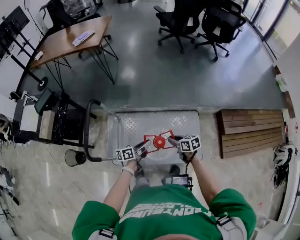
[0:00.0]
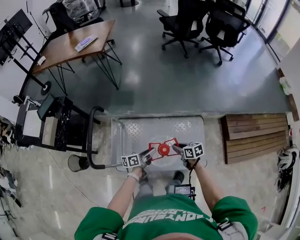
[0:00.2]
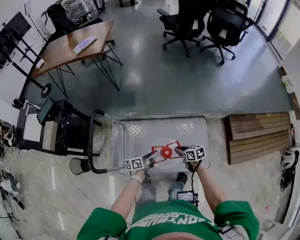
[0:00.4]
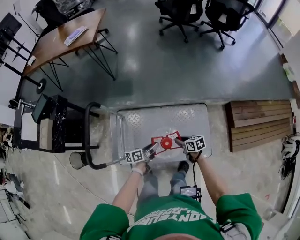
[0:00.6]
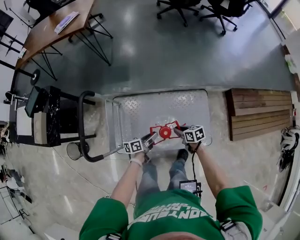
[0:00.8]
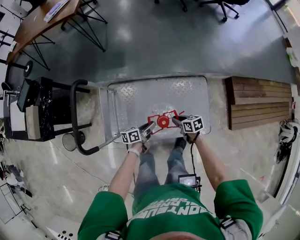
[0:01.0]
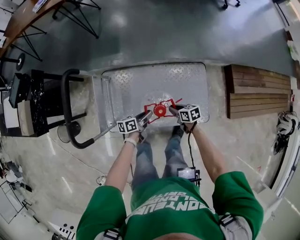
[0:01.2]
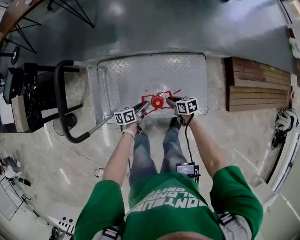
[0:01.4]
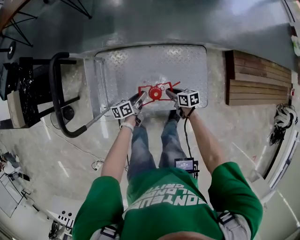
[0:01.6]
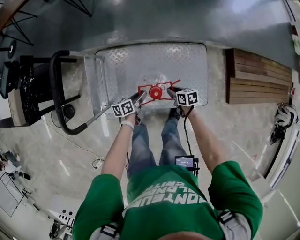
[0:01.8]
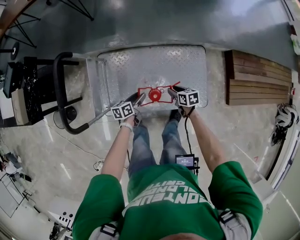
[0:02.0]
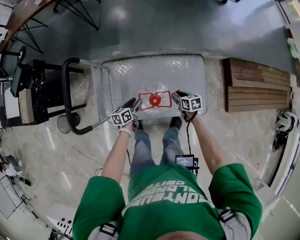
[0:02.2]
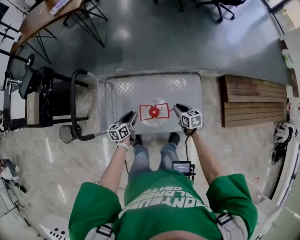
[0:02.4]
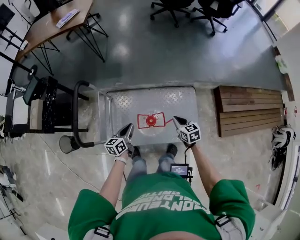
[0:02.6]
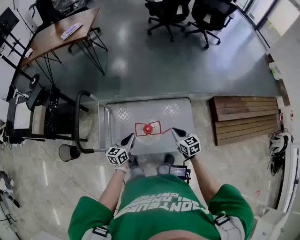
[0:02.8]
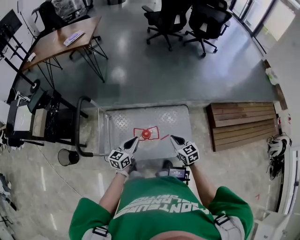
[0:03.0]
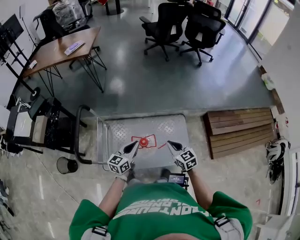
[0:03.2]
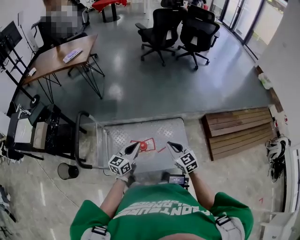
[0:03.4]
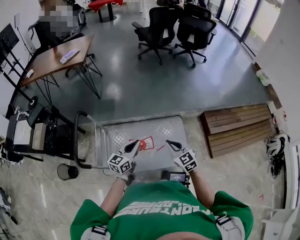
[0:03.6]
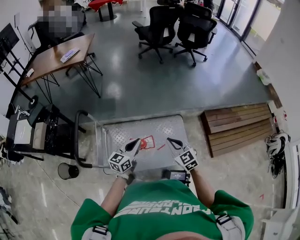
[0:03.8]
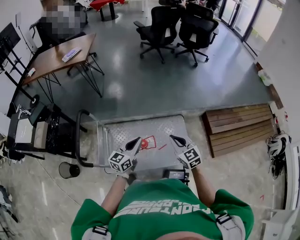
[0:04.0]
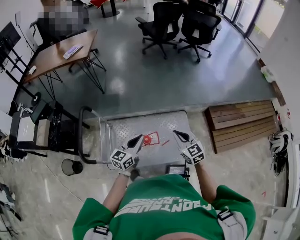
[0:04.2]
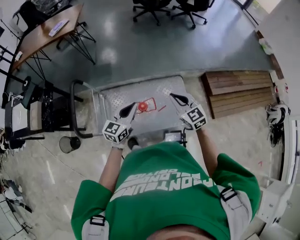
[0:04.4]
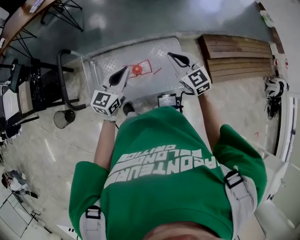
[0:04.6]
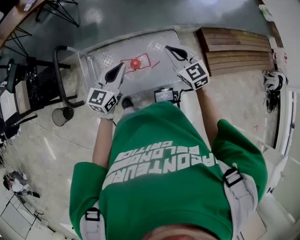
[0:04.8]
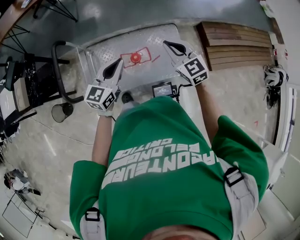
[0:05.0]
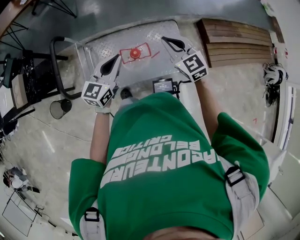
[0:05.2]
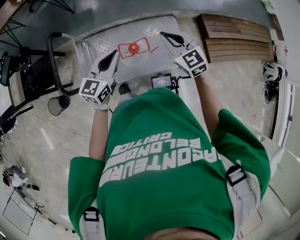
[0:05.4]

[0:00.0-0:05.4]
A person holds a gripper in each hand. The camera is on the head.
0.0 to 1.4 s: The two grippers go roughly 20 cm downward.
1.4 to 2.8 s: The two grippers go approximately 25 cm upward. The left gripper rotates approximately 40 degrees, and opens, then closes again, while the right gripper swivels about 40 degrees, and opens, then closes once more.
2.8 to 4.0 s: The right gripper shifts roughly 15 cm upward, and turns by about 20 degrees; the left gripper travels upward and to the right by roughly 15 cm, and swivels roughly 20 degrees.
4.0 to 5.4 s: The two grippers go about 5 cm to the left.

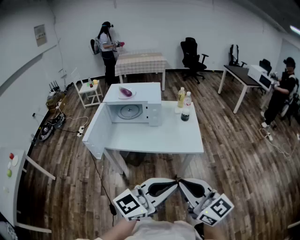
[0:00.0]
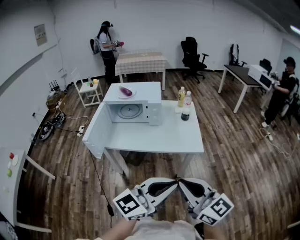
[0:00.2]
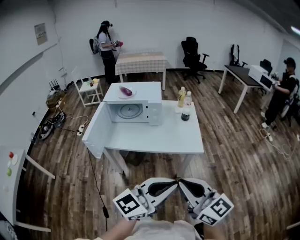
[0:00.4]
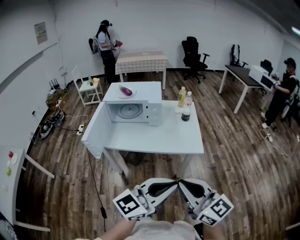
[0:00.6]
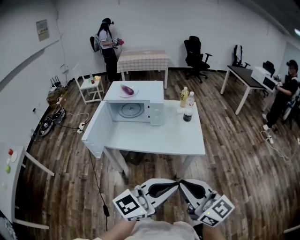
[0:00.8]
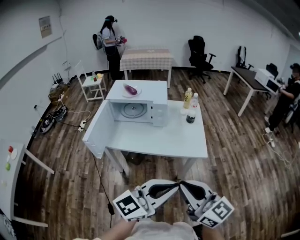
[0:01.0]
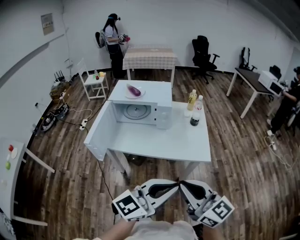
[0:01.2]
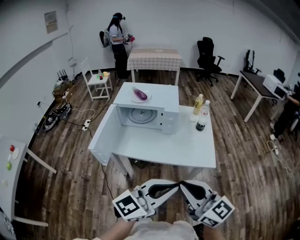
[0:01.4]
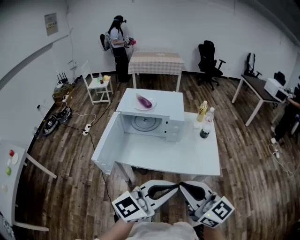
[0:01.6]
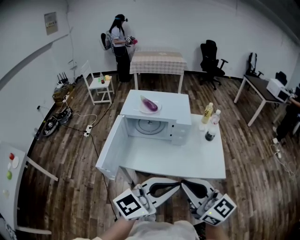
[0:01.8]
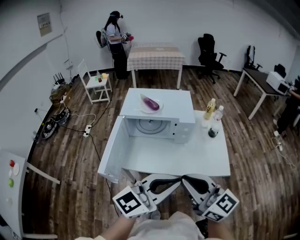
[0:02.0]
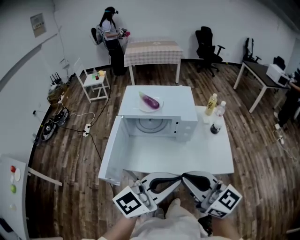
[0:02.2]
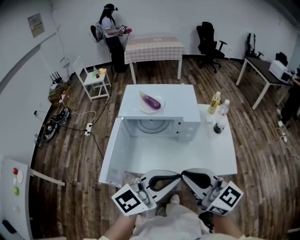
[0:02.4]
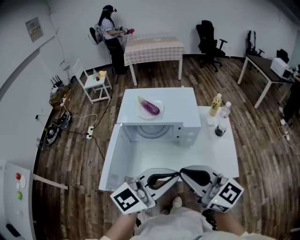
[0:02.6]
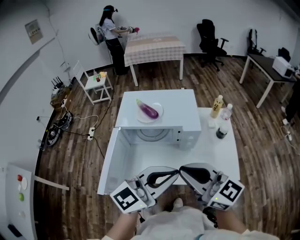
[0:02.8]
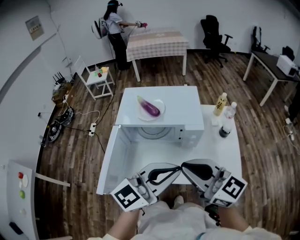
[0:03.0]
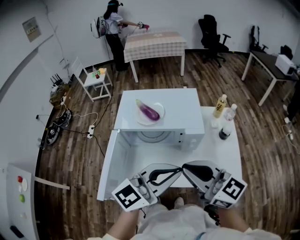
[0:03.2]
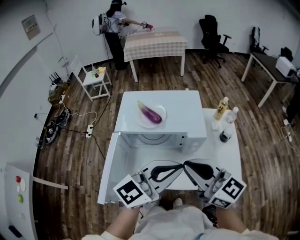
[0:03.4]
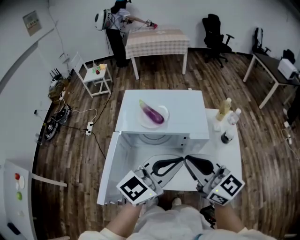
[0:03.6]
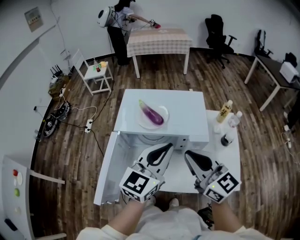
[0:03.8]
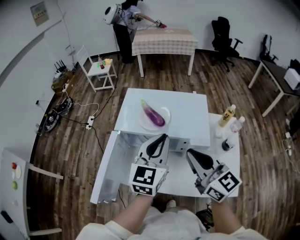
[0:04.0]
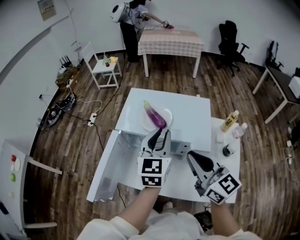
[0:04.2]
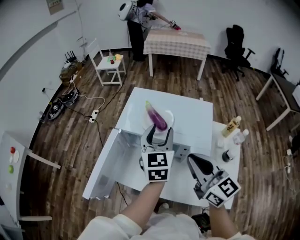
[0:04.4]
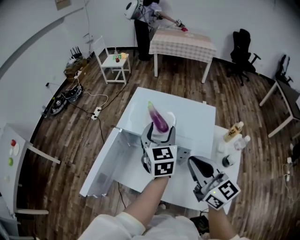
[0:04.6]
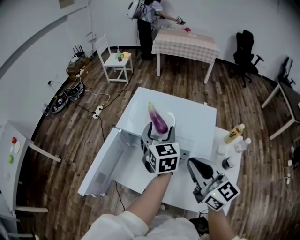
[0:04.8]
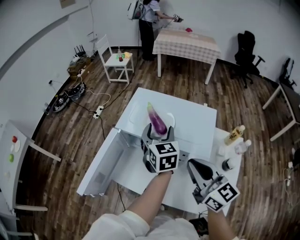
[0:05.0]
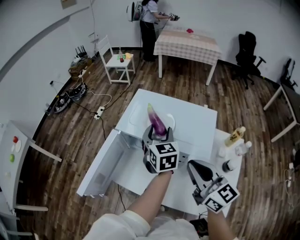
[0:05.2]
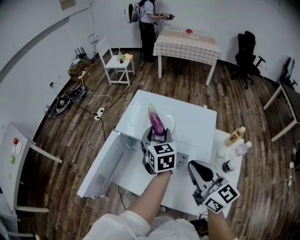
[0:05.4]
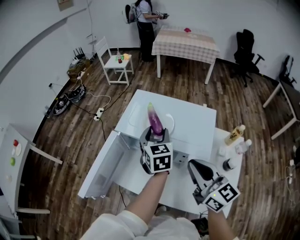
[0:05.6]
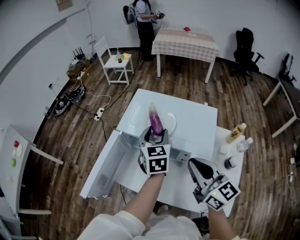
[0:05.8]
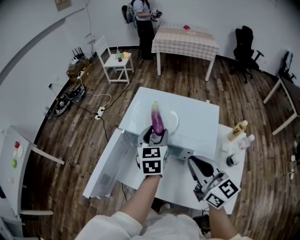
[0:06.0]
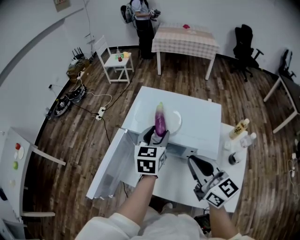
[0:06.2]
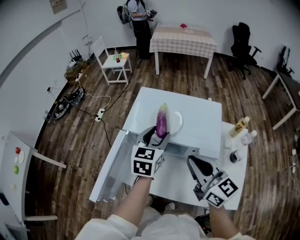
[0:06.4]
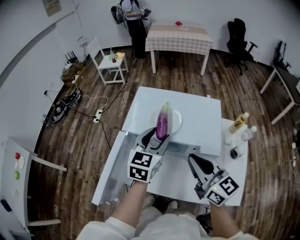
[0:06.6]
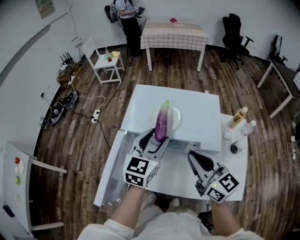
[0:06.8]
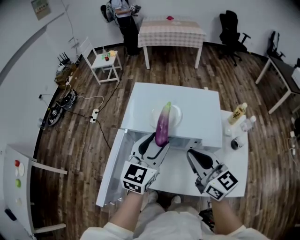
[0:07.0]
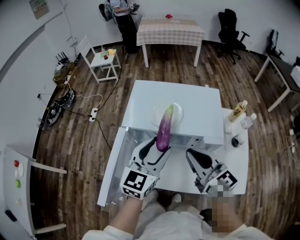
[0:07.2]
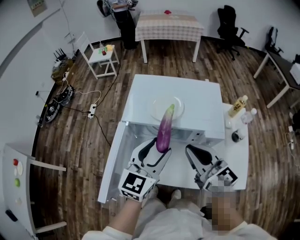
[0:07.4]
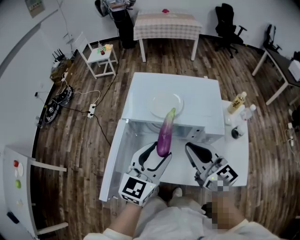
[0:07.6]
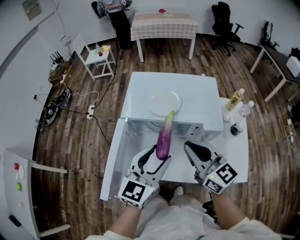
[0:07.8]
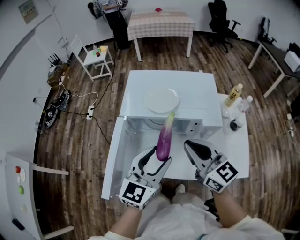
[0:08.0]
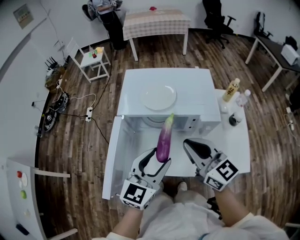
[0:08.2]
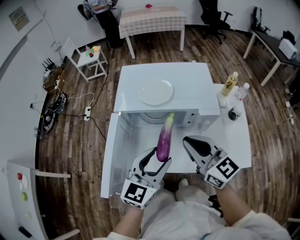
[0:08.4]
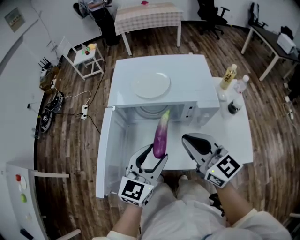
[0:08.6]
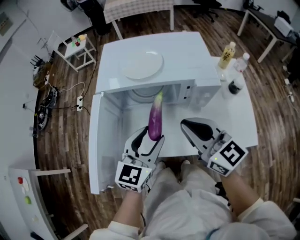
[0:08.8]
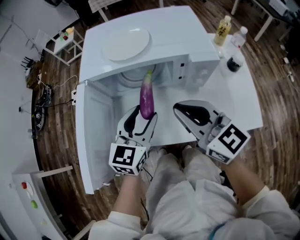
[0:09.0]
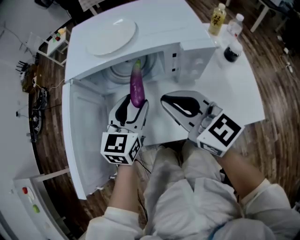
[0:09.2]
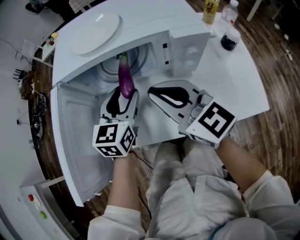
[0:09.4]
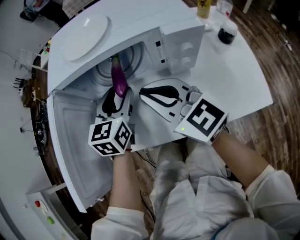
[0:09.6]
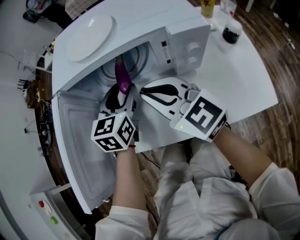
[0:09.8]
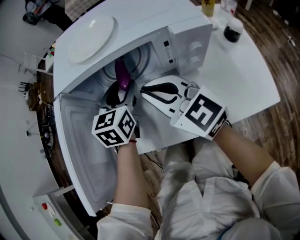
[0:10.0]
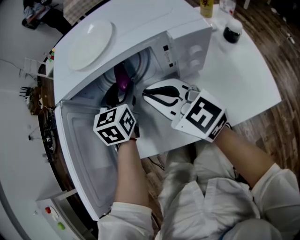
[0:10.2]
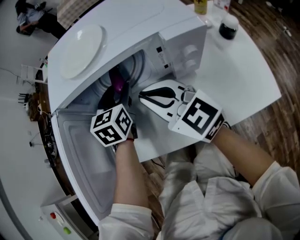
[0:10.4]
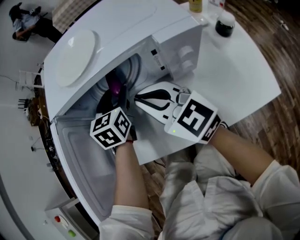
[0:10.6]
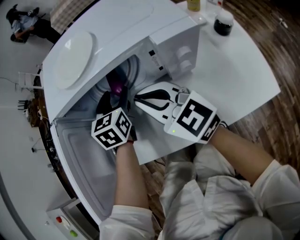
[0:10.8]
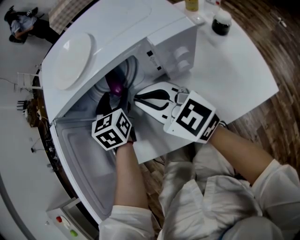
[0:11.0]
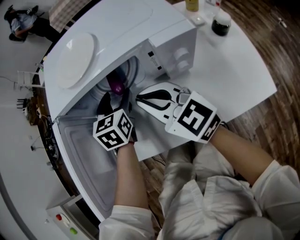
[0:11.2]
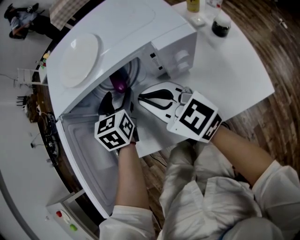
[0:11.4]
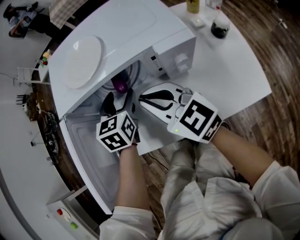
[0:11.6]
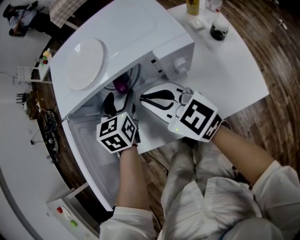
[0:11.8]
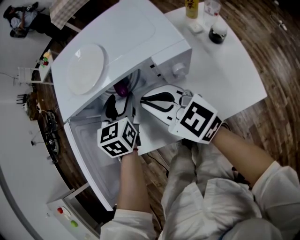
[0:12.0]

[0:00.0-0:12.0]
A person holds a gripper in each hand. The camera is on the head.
0.0 to 1.6 s: Both grippers travel together forward and to the left, about 15 cm.
1.6 to 3.0 s: Both grippers move forward, roughly 20 cm.
3.0 to 4.4 s: The right gripper shifts by roughly 15 cm. The left gripper shifts by approximately 30 cm, changes its angle by roughly 60 degrees, and opens its fingers.
4.4 to 6.0 s: The left gripper changes place by about 5 cm.
6.0 to 7.6 s: The left gripper travels backward by roughly 15 cm, and changes its angle by about 30 degrees. The right gripper is displaced to the left by about 5 cm.
7.6 to 9.0 s: The right gripper is displaced downward by roughly 10 cm; the left gripper is displaced downward by approximately 15 cm.
9.0 to 10.4 s: The right gripper is displaced downward and forward by roughly 10 cm. Meanwhile the left gripper travels forward and downward by some 15 cm.
10.4 to 12.0 s: Both grippers move upward, roughly 5 cm.

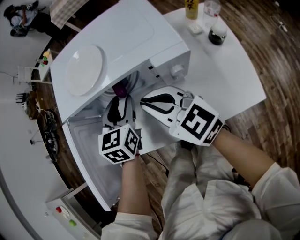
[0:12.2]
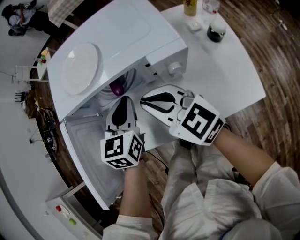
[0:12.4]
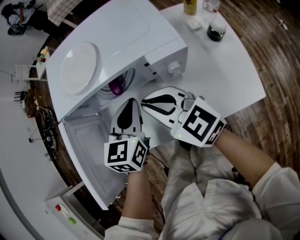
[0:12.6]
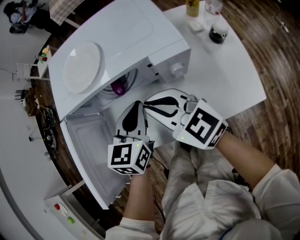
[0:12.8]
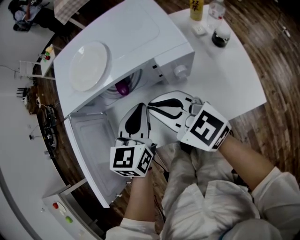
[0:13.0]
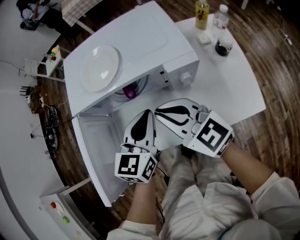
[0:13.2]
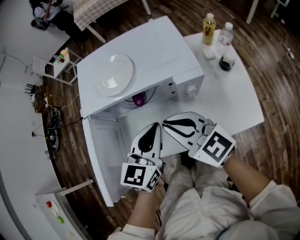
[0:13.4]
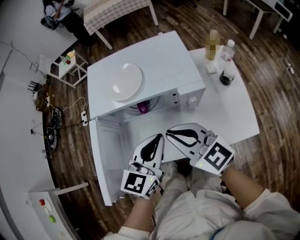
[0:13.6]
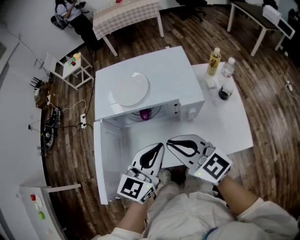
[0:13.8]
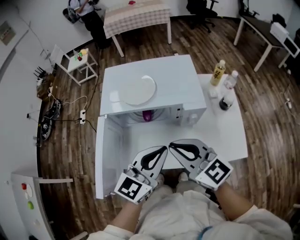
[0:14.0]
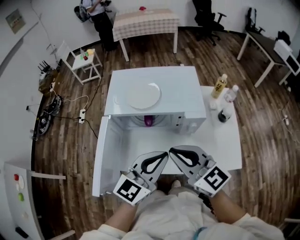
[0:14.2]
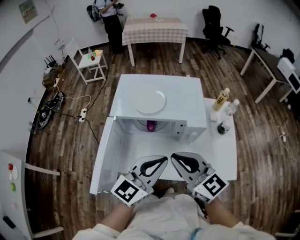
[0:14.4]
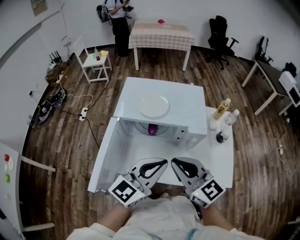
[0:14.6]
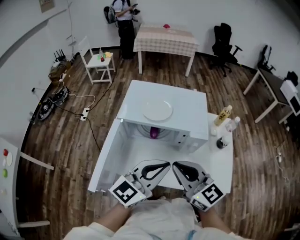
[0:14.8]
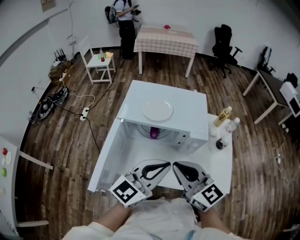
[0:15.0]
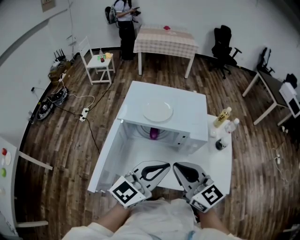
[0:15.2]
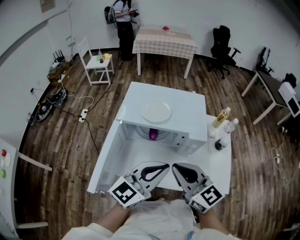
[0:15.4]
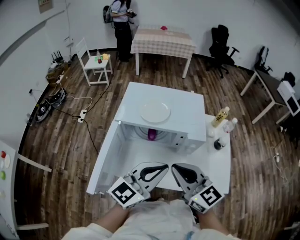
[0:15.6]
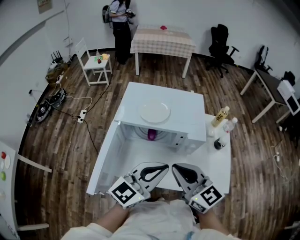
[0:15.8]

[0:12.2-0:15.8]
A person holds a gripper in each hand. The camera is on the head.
12.2 to 14.0 s: The left gripper shifts roughly 20 cm backward and upward, rotates about 30 degrees, and closes up. The right gripper is displaced upward and backward by about 15 cm.
14.0 to 15.8 s: The grippers move only a little.

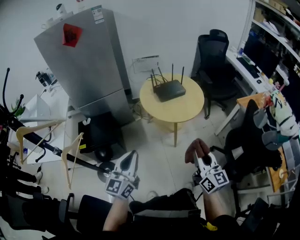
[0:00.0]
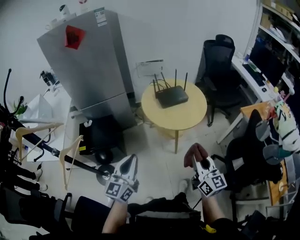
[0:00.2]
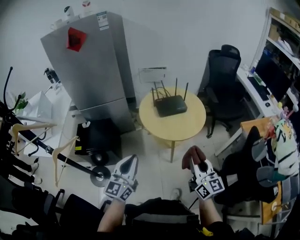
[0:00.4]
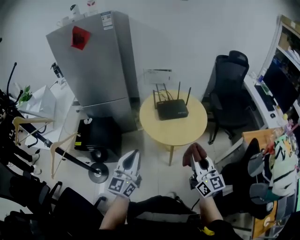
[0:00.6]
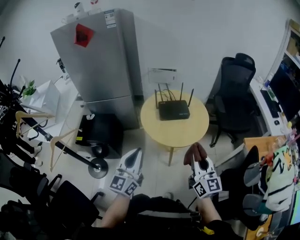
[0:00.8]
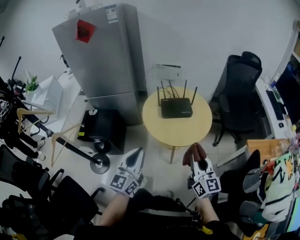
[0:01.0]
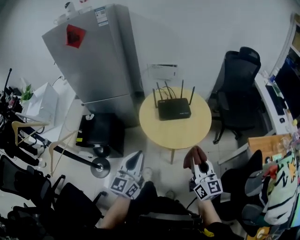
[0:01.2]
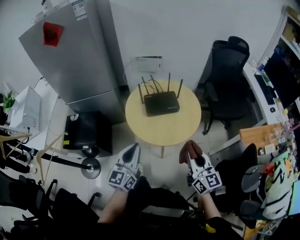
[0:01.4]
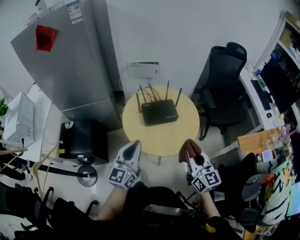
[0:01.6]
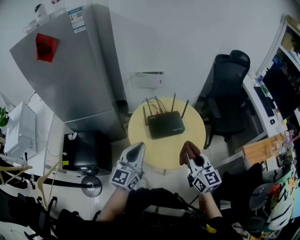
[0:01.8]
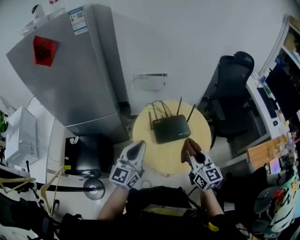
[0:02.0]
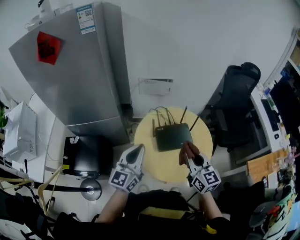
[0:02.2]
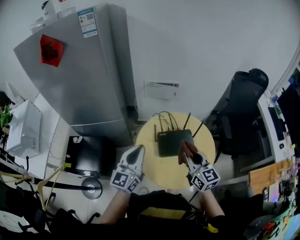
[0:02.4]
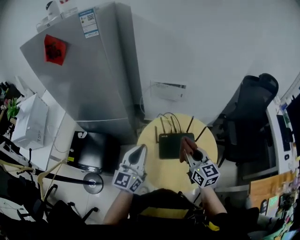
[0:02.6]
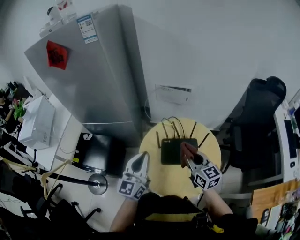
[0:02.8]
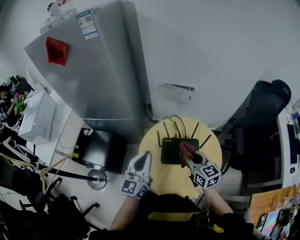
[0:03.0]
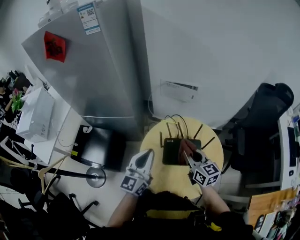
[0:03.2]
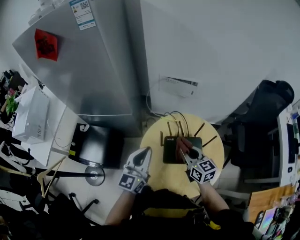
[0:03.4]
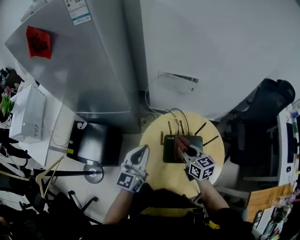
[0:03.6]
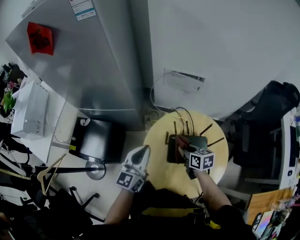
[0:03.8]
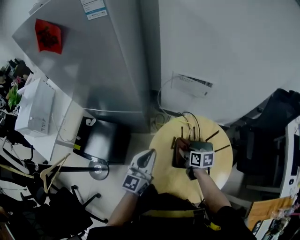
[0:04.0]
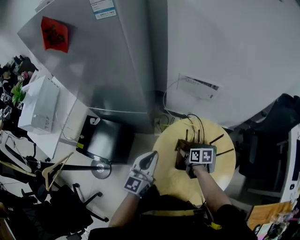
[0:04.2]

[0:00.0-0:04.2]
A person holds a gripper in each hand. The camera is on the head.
0.0 to 1.4 s: The right gripper heads forward and to the right, covering some 25 cm, while the left gripper heads to the right and forward, covering roughly 30 cm.
1.4 to 2.8 s: The two grippers go about 30 cm forward. The right gripper rotates some 20 degrees.
2.8 to 4.2 s: The left gripper goes approximately 10 cm forward and downward, while the right gripper shifts roughly 25 cm downward and forward, and tips its fingers downward by roughly 30 degrees.
